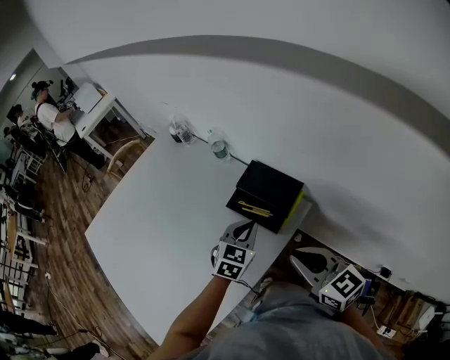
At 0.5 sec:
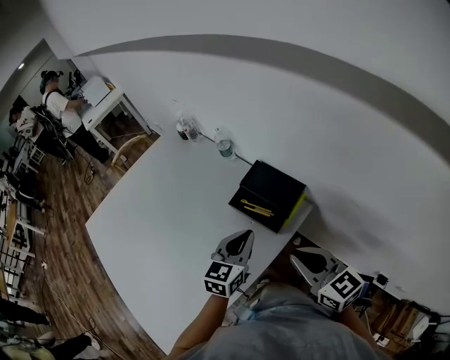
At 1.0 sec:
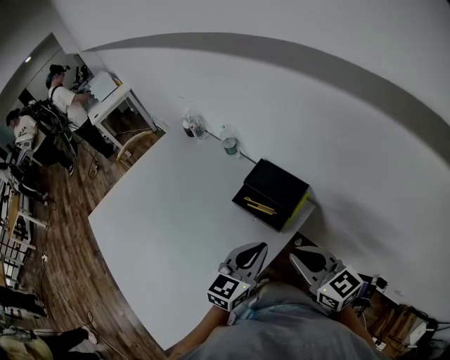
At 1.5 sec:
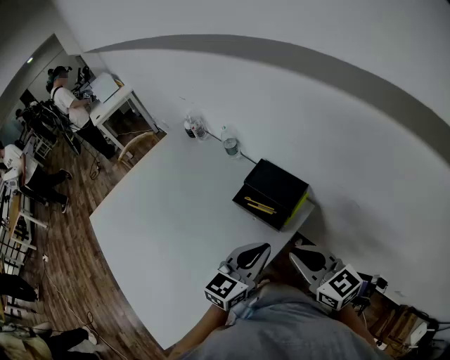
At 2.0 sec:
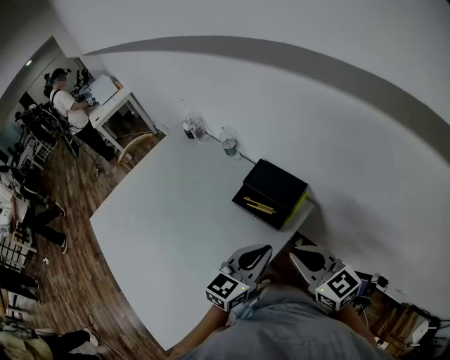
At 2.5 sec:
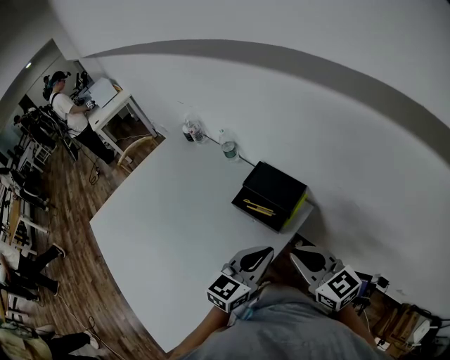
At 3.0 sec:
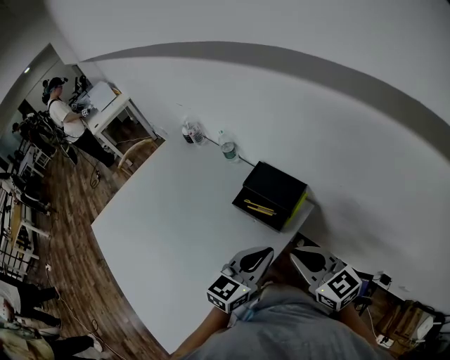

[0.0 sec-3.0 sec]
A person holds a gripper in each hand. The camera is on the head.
0.0 sec to 1.5 sec: The left gripper goes about 15 cm backward and upward, and turns by about 30 degrees.
1.5 sec to 3.0 sec: The two grippers keep their place.

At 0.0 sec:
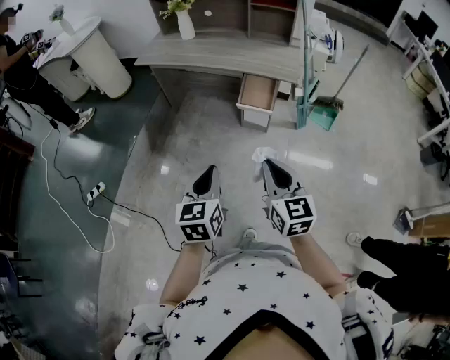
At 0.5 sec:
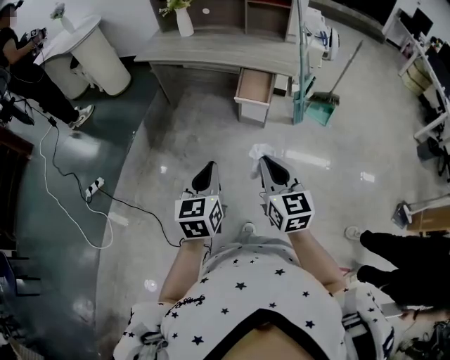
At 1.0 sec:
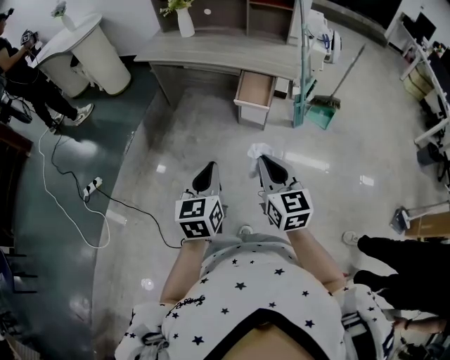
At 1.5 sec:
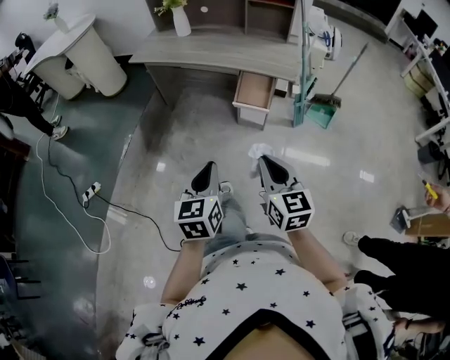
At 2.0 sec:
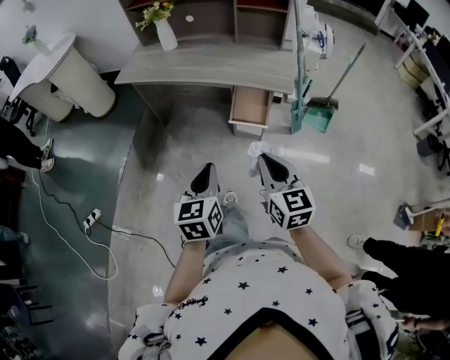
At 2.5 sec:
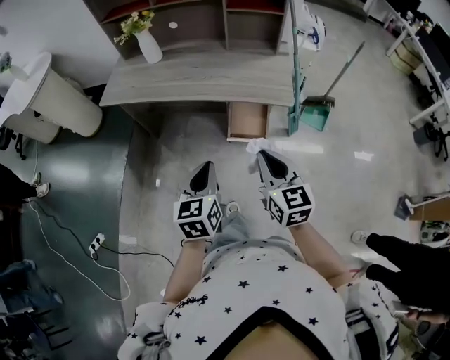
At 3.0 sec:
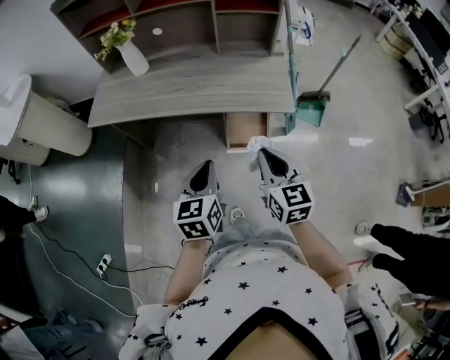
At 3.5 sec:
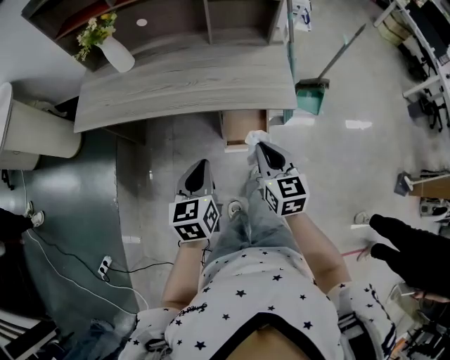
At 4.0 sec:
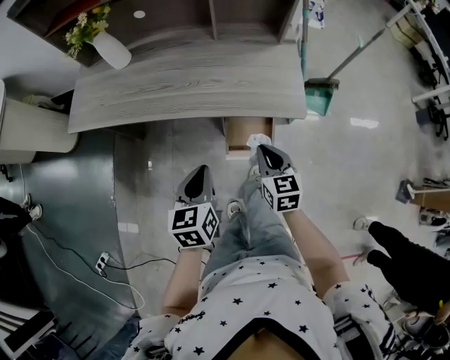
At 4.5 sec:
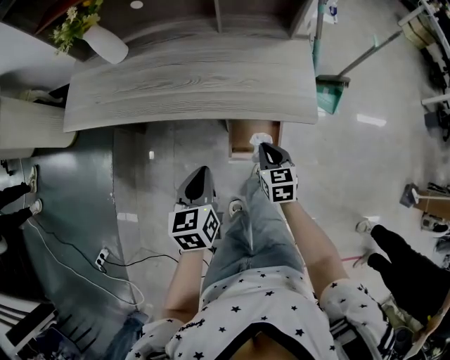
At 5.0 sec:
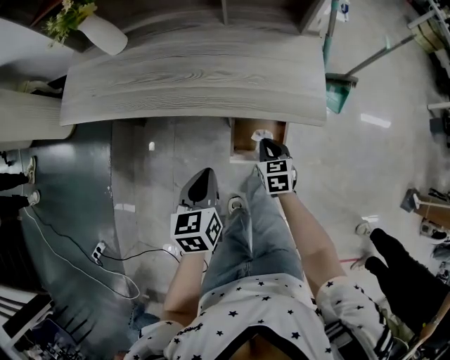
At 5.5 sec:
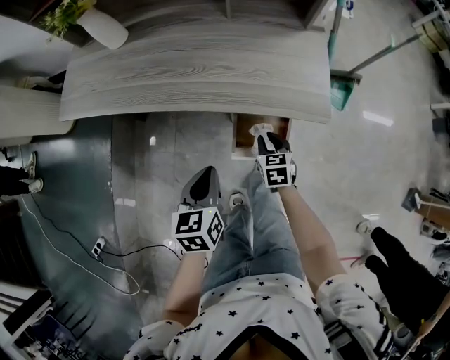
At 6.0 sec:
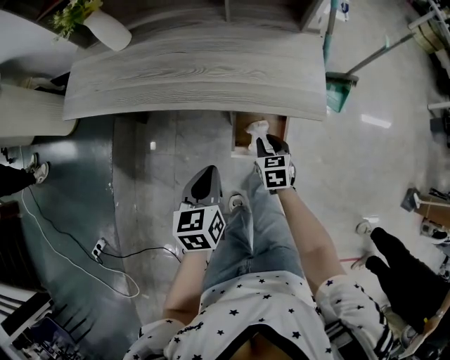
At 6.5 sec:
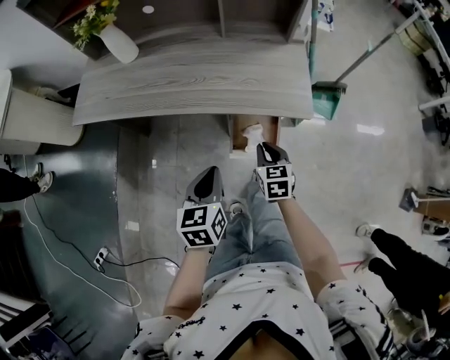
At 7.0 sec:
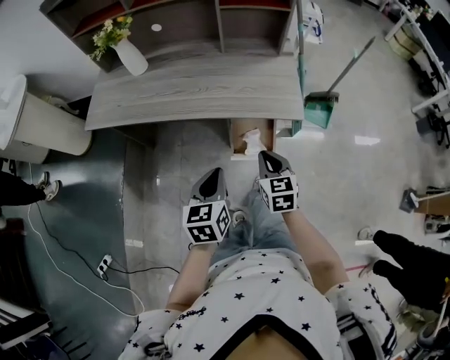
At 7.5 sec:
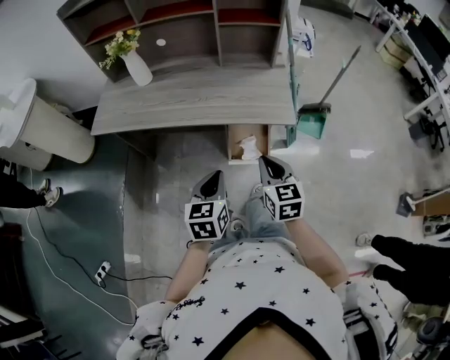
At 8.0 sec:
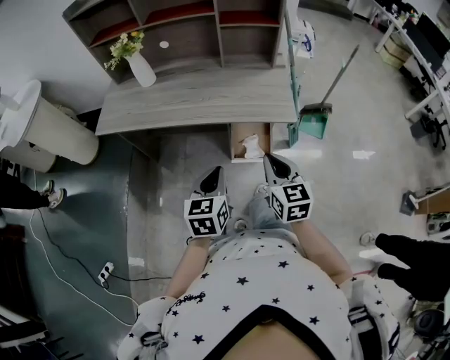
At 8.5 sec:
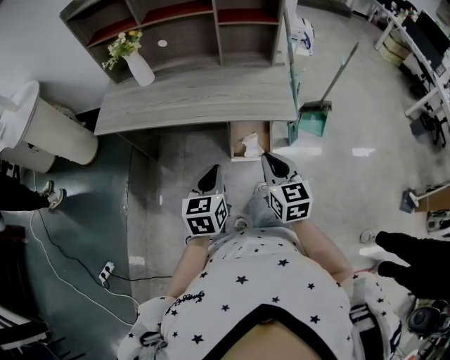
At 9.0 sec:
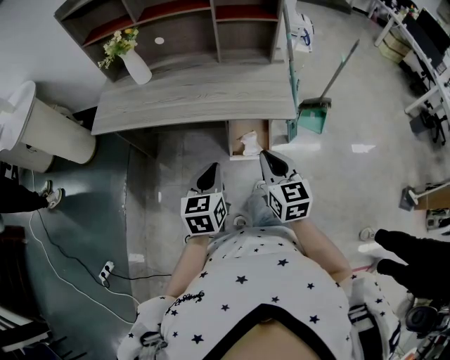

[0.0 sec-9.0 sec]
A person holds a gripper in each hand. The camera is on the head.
0.0 sec to 2.0 sec: Both grippers travel together forward, roughly 15 cm.
2.0 sec to 4.5 sec: Both grippers travel together forward and downward, roughly 40 cm. The right gripper turns by about 30 degrees.
4.5 sec to 7.0 sec: The right gripper moves upward and backward, about 15 cm, and opens, then closes again; the left gripper goes roughly 10 cm backward and upward.
7.0 sec to 9.0 sec: The right gripper heads upward and backward, covering about 15 cm.

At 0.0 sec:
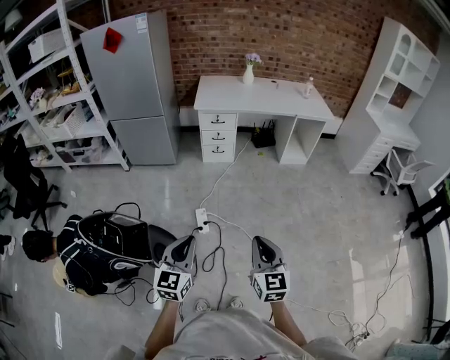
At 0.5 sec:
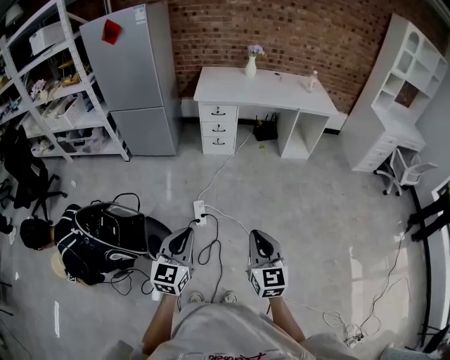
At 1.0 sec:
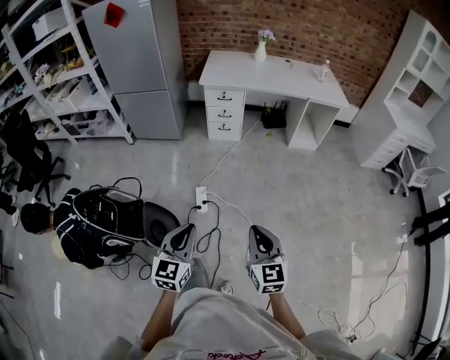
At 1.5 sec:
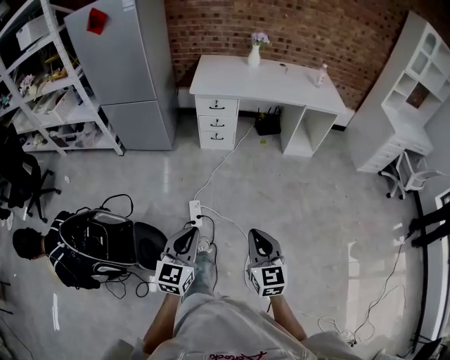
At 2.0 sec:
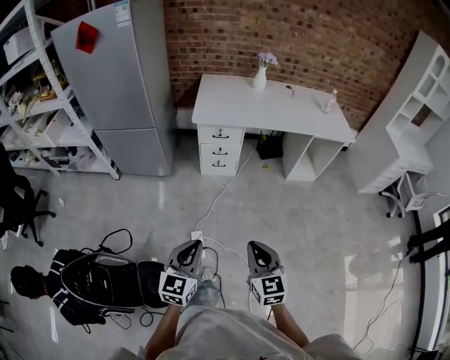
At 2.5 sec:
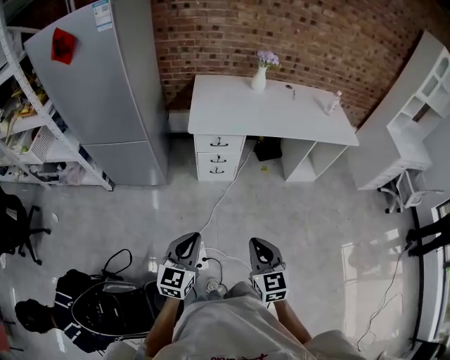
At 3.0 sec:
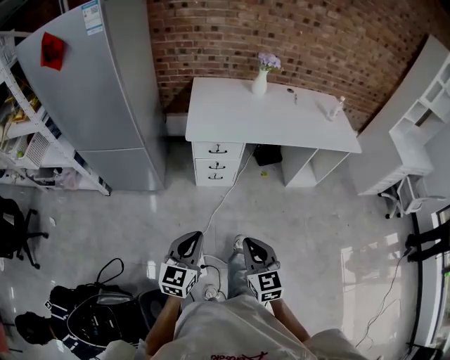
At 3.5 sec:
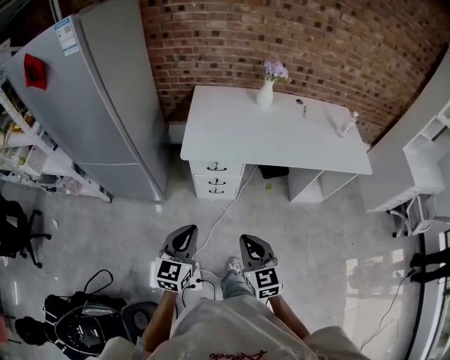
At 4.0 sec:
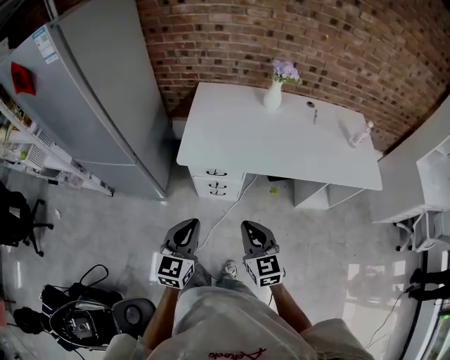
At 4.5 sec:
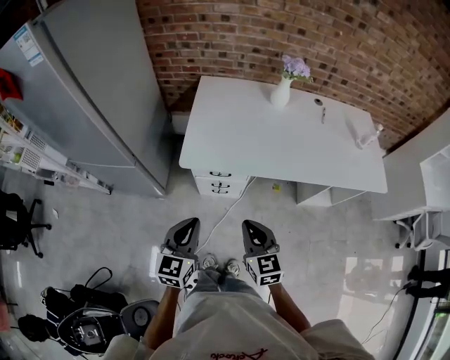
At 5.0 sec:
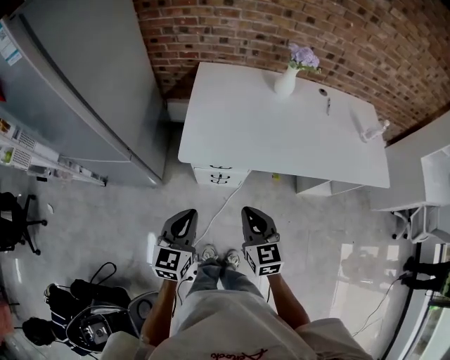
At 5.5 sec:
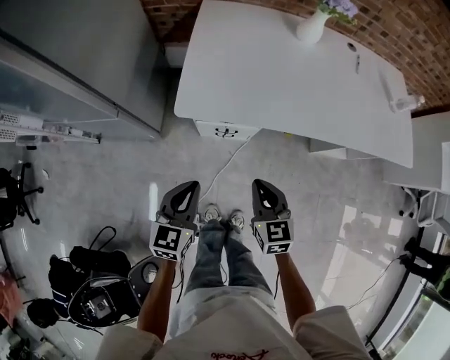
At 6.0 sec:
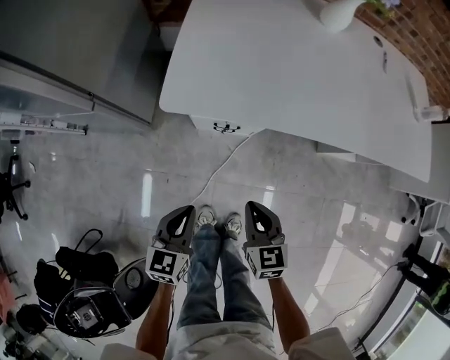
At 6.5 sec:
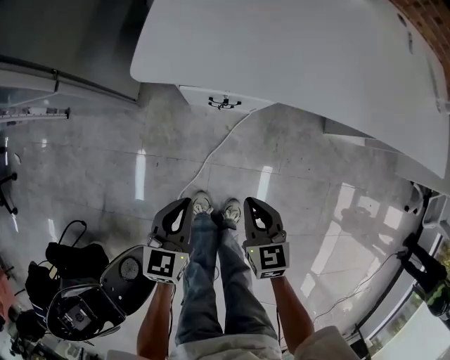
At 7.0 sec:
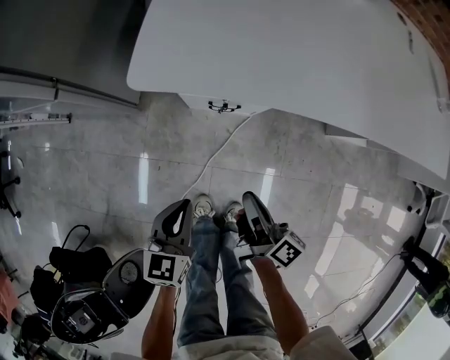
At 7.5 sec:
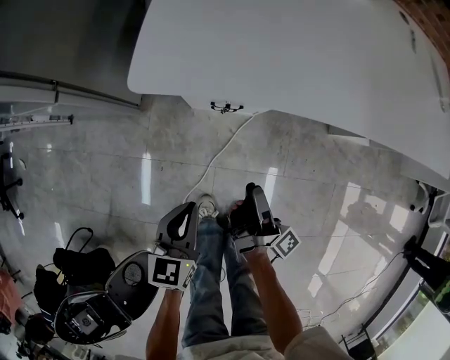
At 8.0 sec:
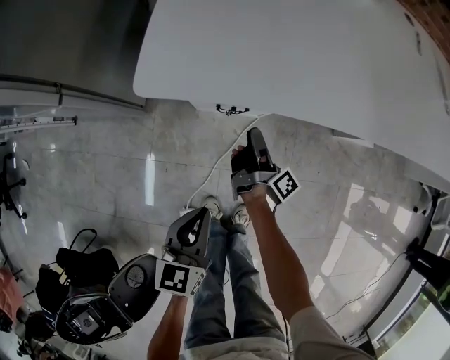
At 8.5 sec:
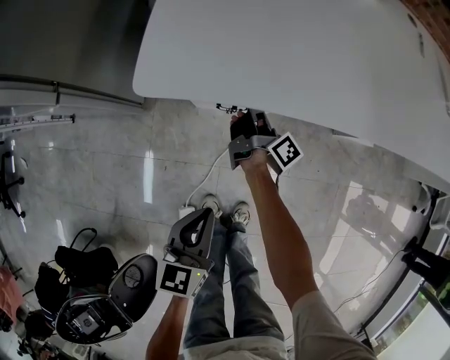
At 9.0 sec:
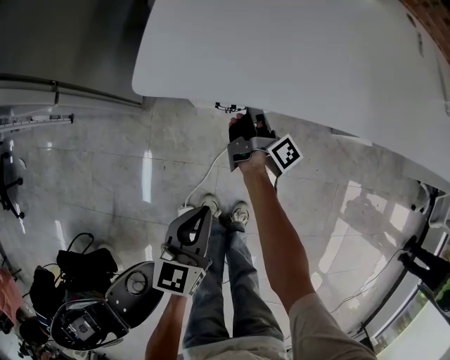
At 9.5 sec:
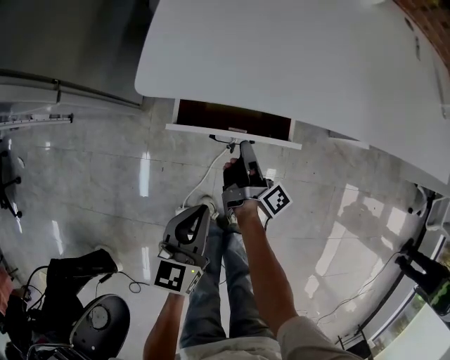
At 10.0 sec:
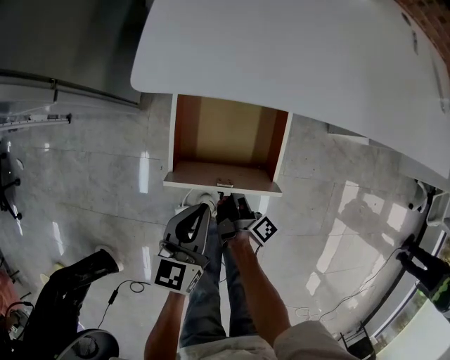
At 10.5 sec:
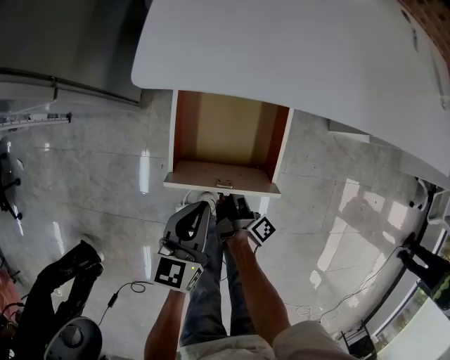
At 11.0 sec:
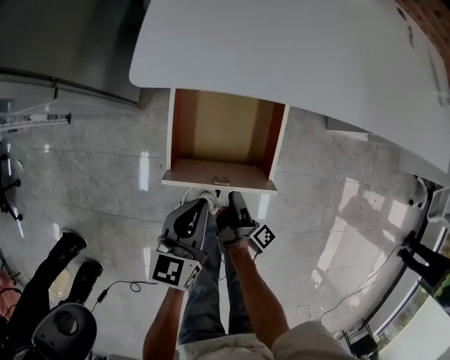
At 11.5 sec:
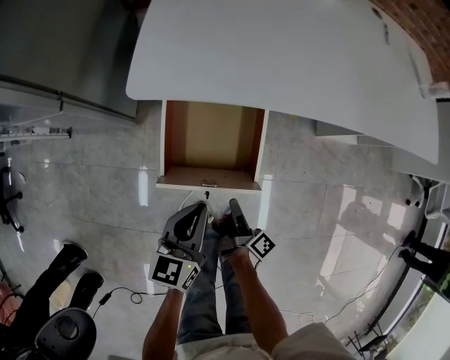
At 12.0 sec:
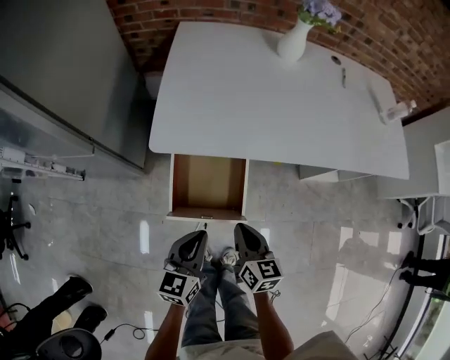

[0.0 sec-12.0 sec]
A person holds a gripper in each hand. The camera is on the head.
0.0 sec to 2.0 sec: Both grippers move forward, roughly 30 cm.
2.0 sec to 4.0 sec: The two grippers travel together, forward, roughly 50 cm.
4.0 sec to 6.0 sec: Both grippers travel together downward, approximately 25 cm. The right gripper turns by approximately 20 degrees. The left gripper rotates approximately 20 degrees.
6.0 sec to 8.0 sec: The right gripper travels forward and downward by approximately 25 cm, rotates around the line of its fingers by about 90 degrees, clockwise from behind, and opens its fingers; the left gripper shifts about 5 cm downward.
8.0 sec to 10.0 sec: The right gripper heads backward, covering approximately 15 cm, and closes.
10.0 sec to 12.0 sec: The right gripper is displaced upward by some 20 cm, rolls counterclockwise, seen from behind, by about 70 degrees, and opens, then closes once more, while the left gripper is displaced upward by roughly 10 cm.

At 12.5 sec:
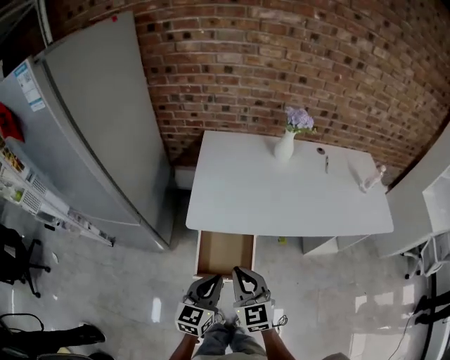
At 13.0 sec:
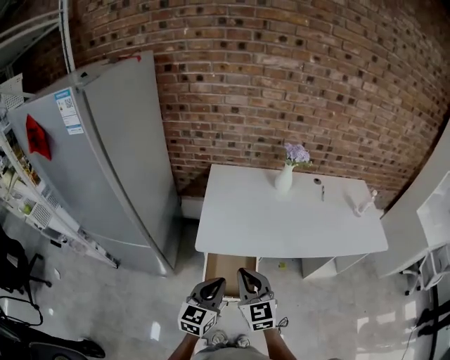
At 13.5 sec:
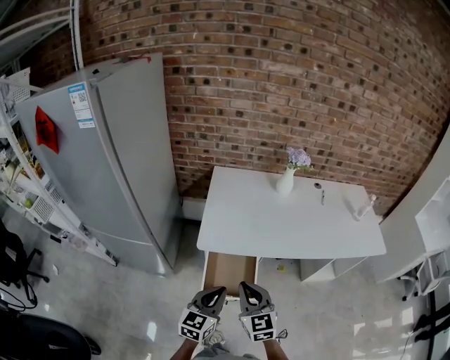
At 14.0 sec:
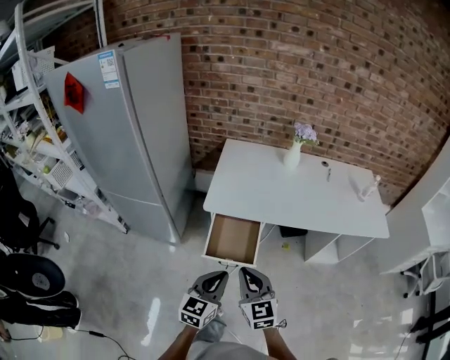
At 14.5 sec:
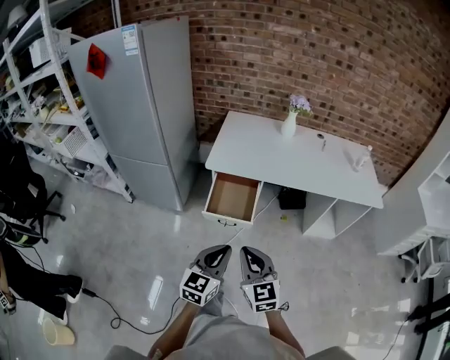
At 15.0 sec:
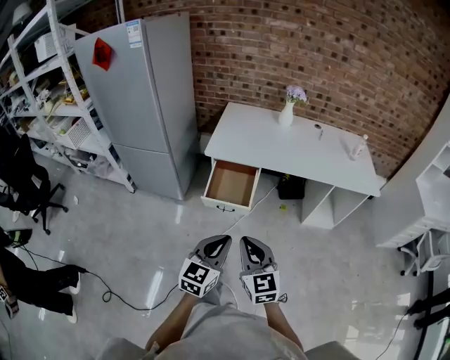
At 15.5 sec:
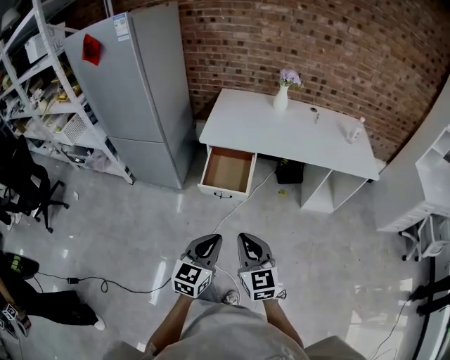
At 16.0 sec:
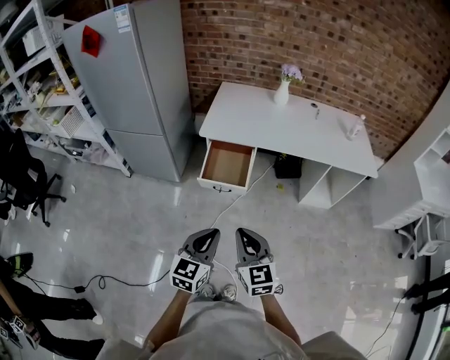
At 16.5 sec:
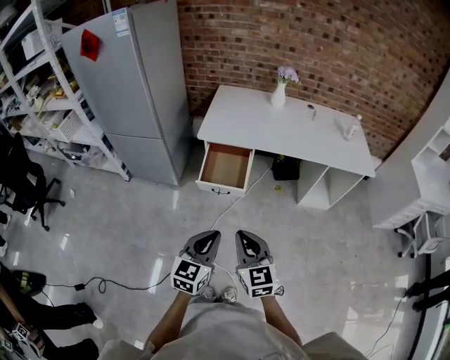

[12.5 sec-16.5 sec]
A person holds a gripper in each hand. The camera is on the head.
12.5 sec to 14.5 sec: Both grippers move backward, some 30 cm.
14.5 sec to 16.5 sec: Both grippers move backward, approximately 10 cm.
